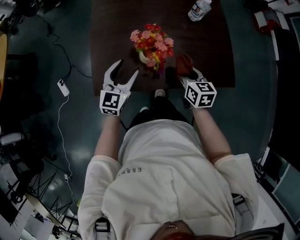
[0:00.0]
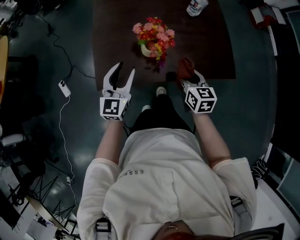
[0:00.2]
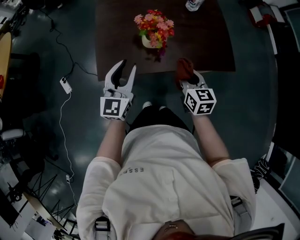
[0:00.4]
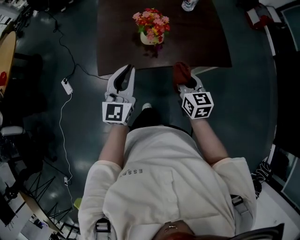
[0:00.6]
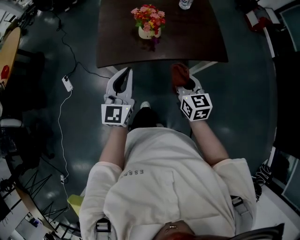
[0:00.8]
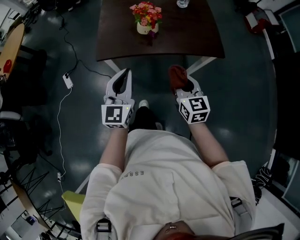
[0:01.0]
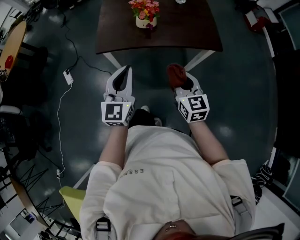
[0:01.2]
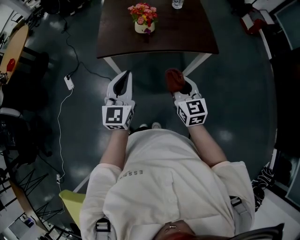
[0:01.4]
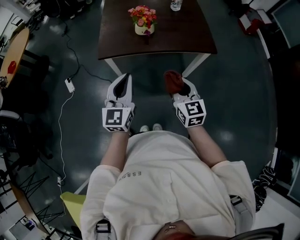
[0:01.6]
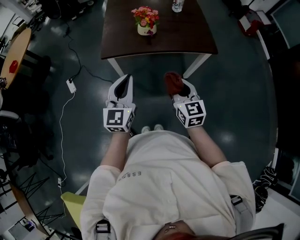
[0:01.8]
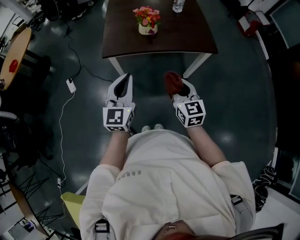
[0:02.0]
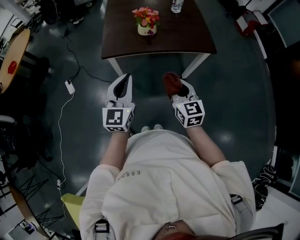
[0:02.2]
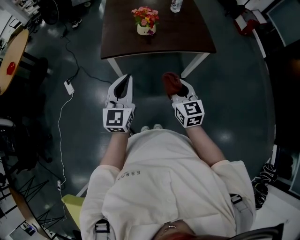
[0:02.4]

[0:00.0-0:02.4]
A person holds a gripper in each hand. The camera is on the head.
0:00.0 to 0:01.2: The left gripper is displaced backward and upward by some 35 cm, and closes, while the right gripper shifts about 30 cm backward, and swivels approximately 20 degrees.
0:01.2 to 0:02.4: The two grippers go roughly 5 cm backward.

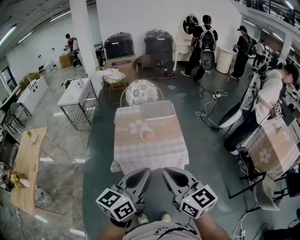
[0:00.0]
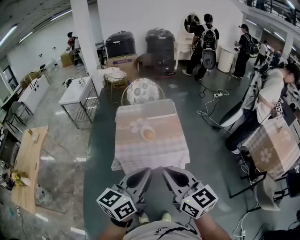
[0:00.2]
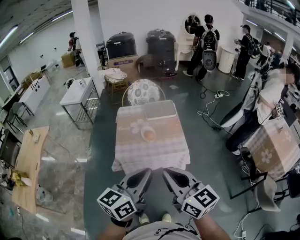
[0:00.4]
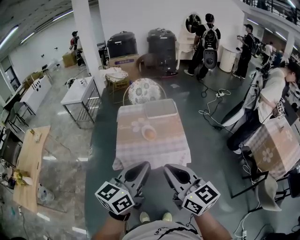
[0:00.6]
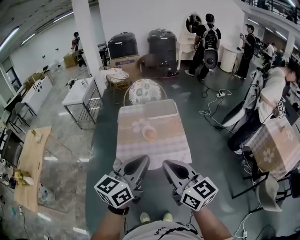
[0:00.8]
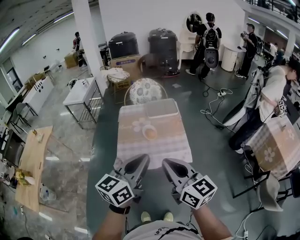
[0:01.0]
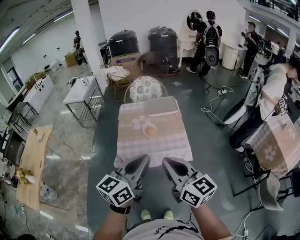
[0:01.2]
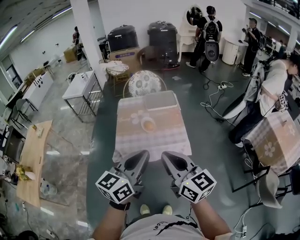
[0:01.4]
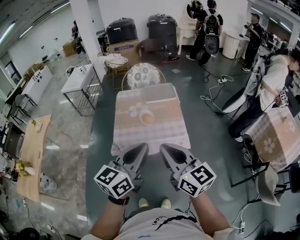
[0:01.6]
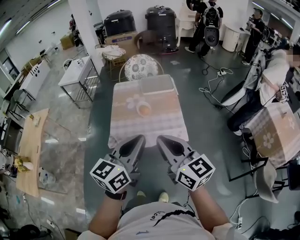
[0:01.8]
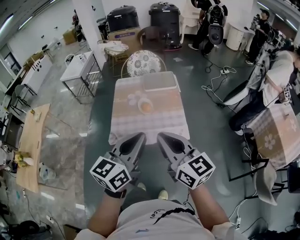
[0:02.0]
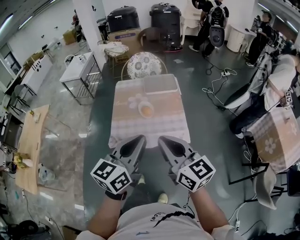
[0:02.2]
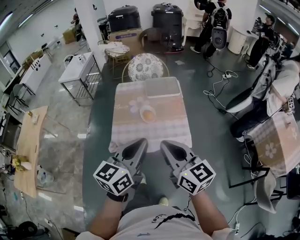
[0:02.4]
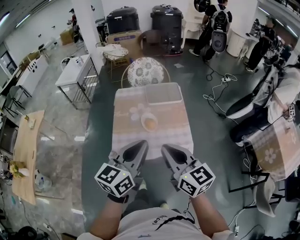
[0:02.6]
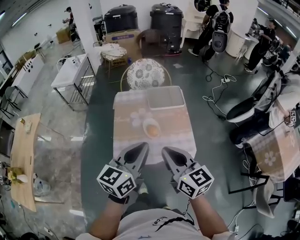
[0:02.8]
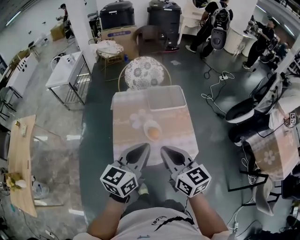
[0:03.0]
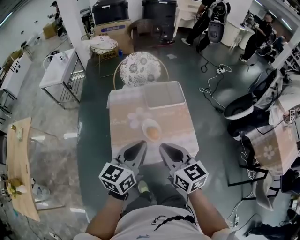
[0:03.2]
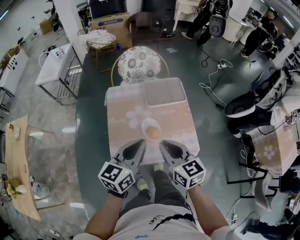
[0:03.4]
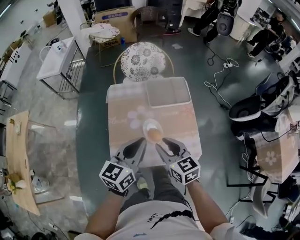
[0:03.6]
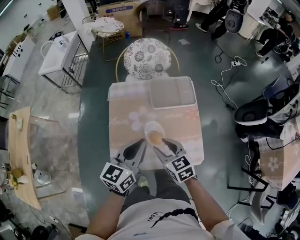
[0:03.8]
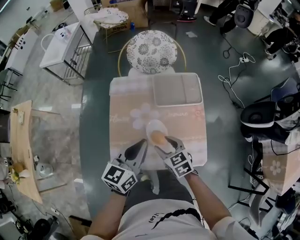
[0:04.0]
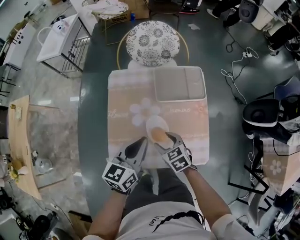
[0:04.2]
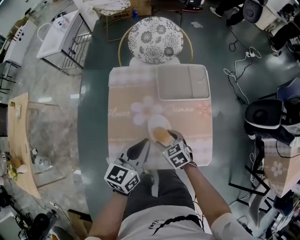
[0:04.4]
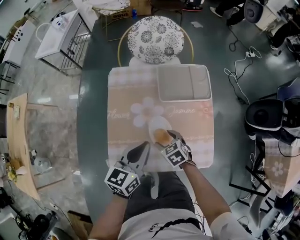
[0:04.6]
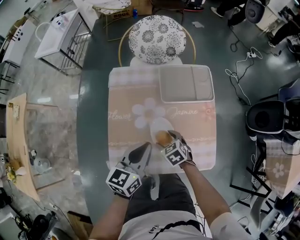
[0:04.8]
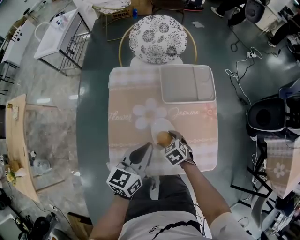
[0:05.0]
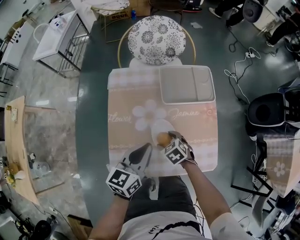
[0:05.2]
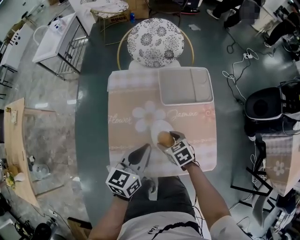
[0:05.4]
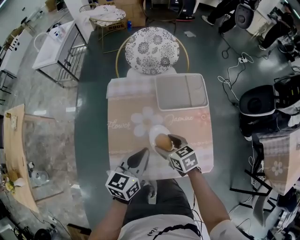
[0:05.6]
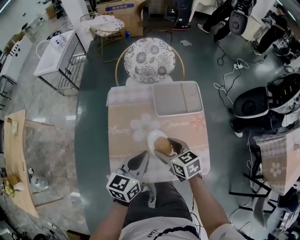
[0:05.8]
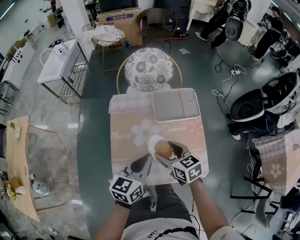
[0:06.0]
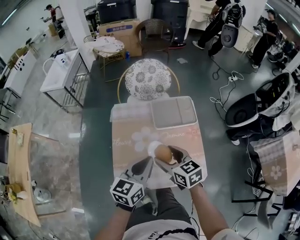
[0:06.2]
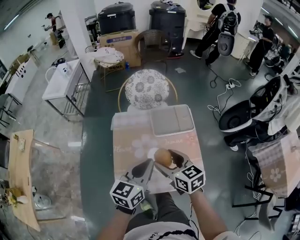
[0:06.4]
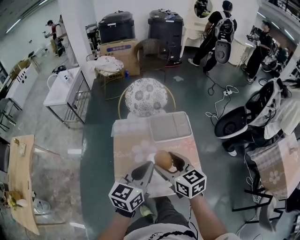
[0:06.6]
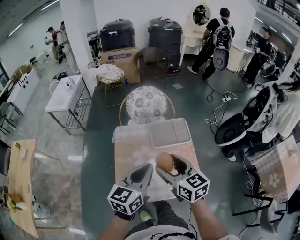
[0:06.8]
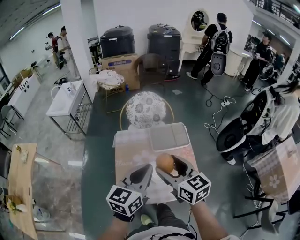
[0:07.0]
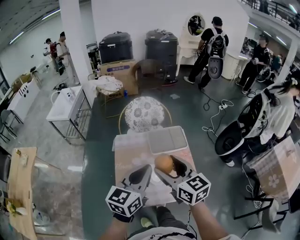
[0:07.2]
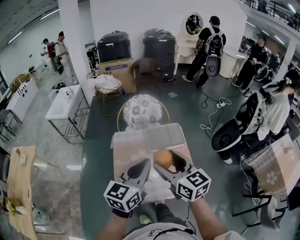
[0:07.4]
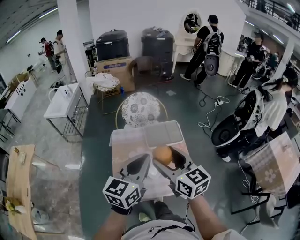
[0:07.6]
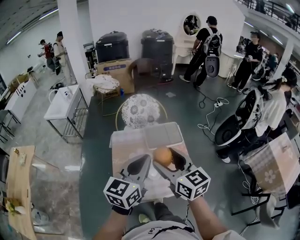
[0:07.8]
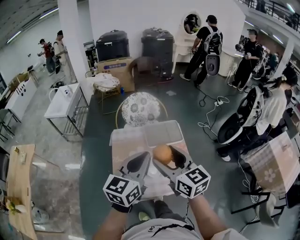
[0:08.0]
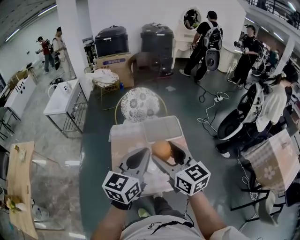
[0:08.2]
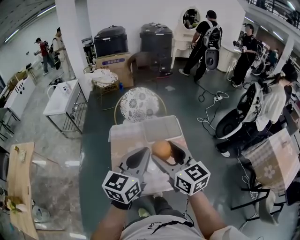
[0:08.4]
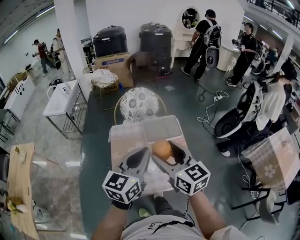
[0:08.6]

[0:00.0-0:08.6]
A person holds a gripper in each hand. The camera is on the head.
0:00.0 to 0:01.4: The grippers move only a little.
0:01.4 to 0:02.8: The two grippers go some 20 cm forward.
0:02.8 to 0:04.4: Both grippers move downward and forward, approximately 35 cm. The right gripper angles its fingers downward, by roughly 50 degrees, and opens.
0:04.4 to 0:05.8: The right gripper heads upward, covering roughly 10 cm, and swivels about 20 degrees.
0:05.8 to 0:07.2: Both grippers move upward, roughly 25 cm. The right gripper rotates about 30 degrees.
0:07.2 to 0:08.6: The grippers move only a little.

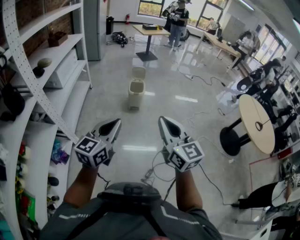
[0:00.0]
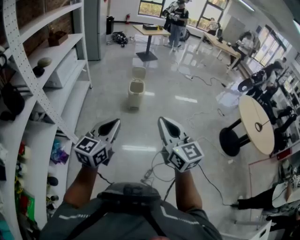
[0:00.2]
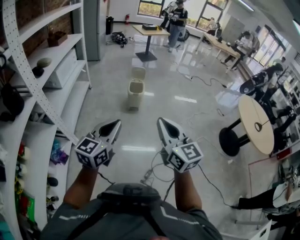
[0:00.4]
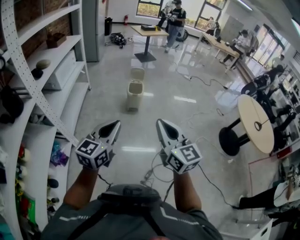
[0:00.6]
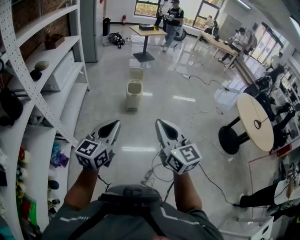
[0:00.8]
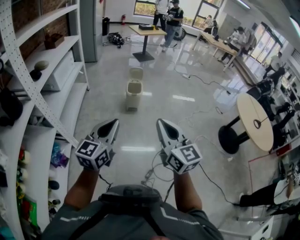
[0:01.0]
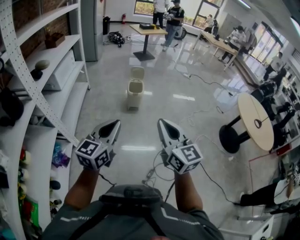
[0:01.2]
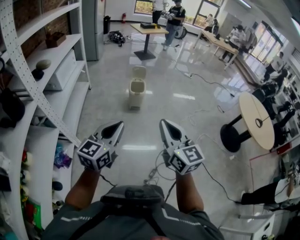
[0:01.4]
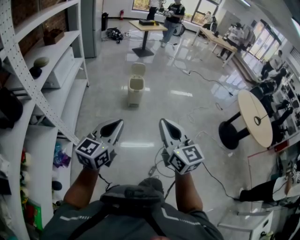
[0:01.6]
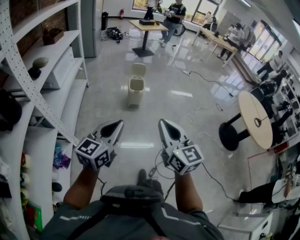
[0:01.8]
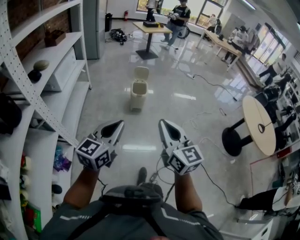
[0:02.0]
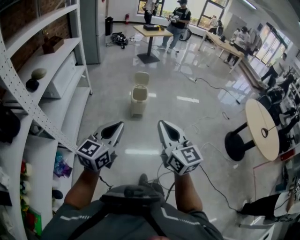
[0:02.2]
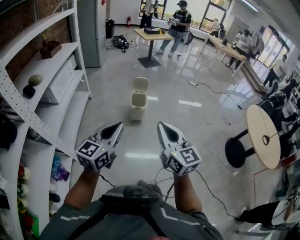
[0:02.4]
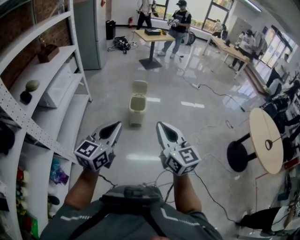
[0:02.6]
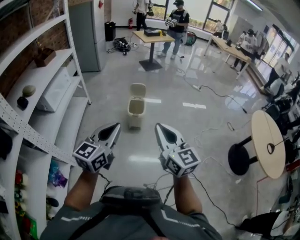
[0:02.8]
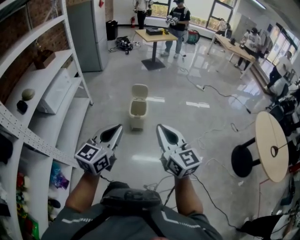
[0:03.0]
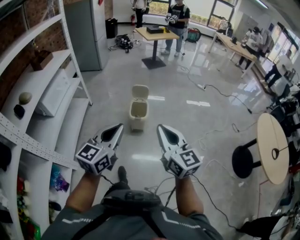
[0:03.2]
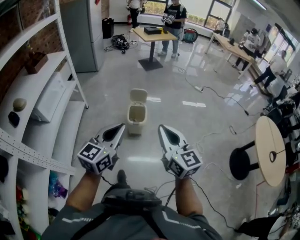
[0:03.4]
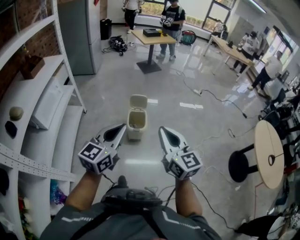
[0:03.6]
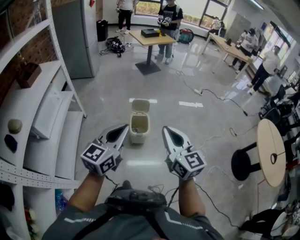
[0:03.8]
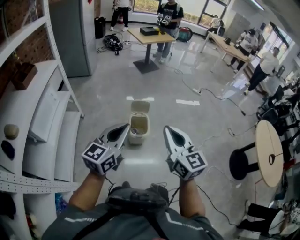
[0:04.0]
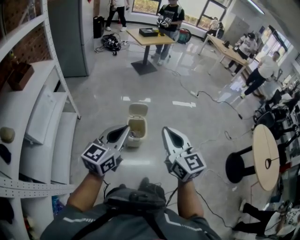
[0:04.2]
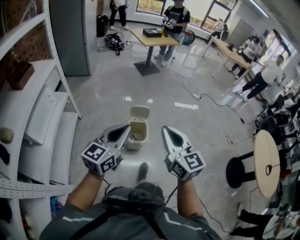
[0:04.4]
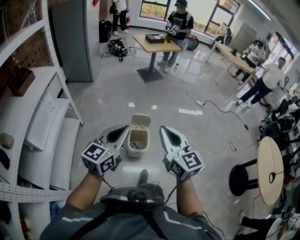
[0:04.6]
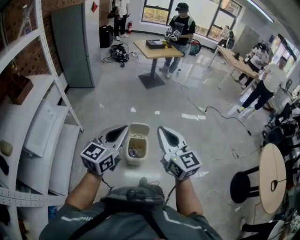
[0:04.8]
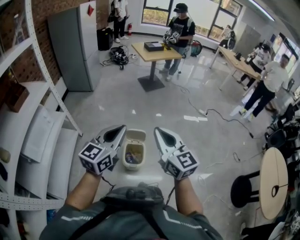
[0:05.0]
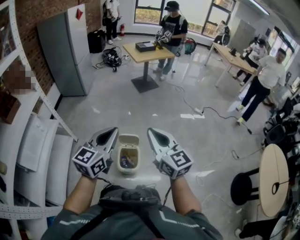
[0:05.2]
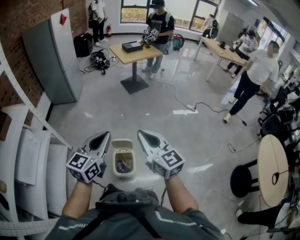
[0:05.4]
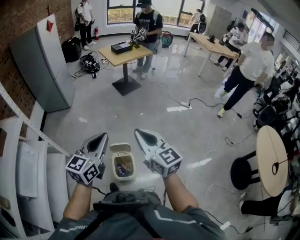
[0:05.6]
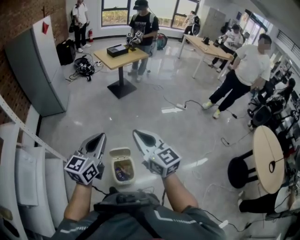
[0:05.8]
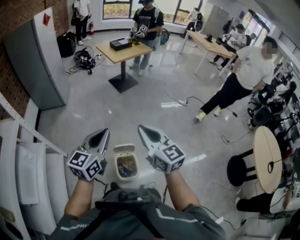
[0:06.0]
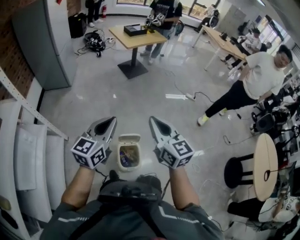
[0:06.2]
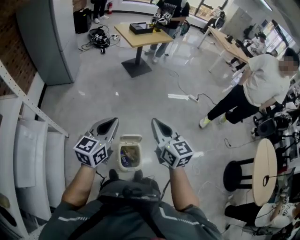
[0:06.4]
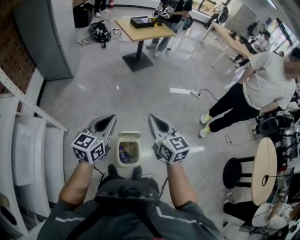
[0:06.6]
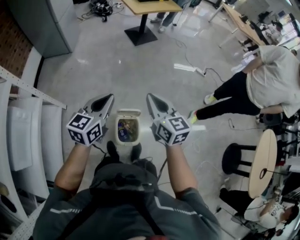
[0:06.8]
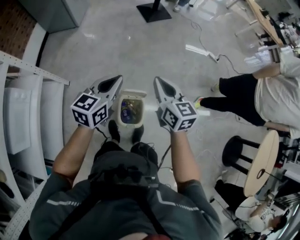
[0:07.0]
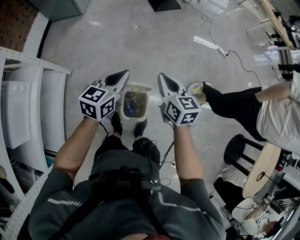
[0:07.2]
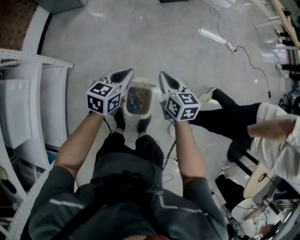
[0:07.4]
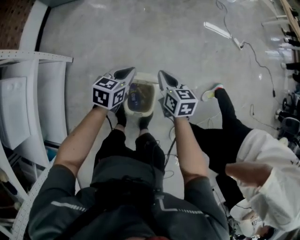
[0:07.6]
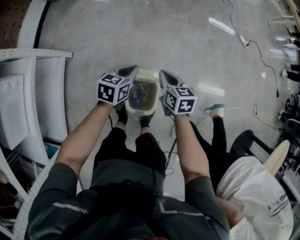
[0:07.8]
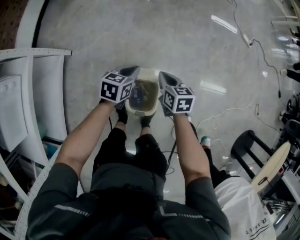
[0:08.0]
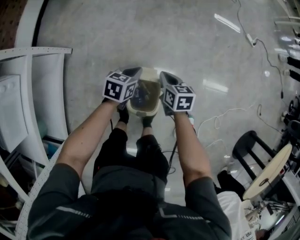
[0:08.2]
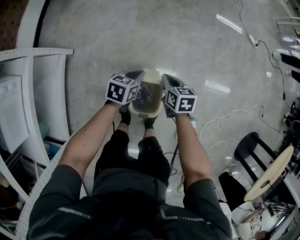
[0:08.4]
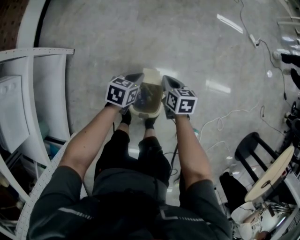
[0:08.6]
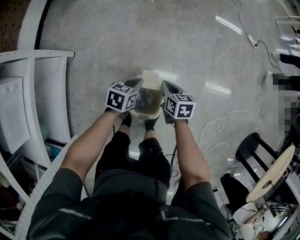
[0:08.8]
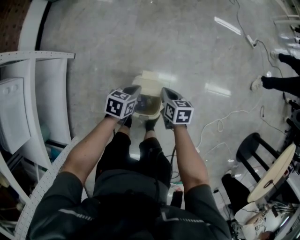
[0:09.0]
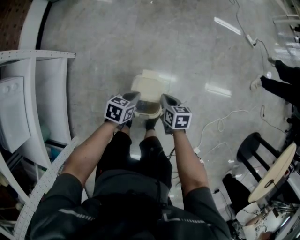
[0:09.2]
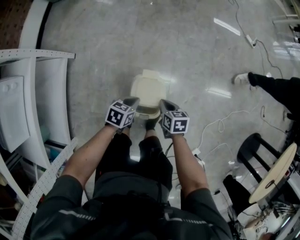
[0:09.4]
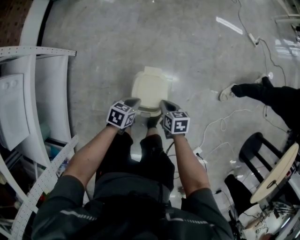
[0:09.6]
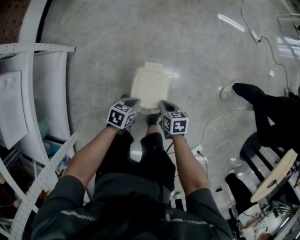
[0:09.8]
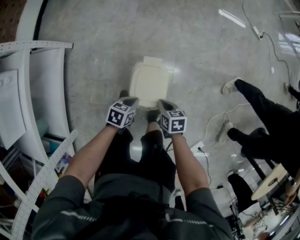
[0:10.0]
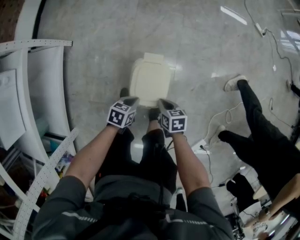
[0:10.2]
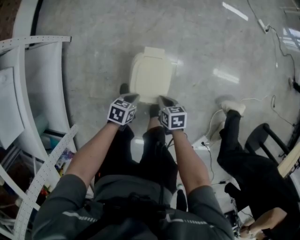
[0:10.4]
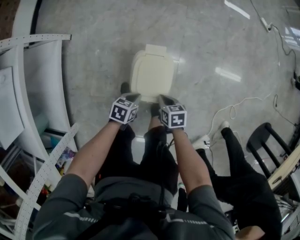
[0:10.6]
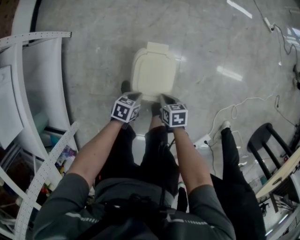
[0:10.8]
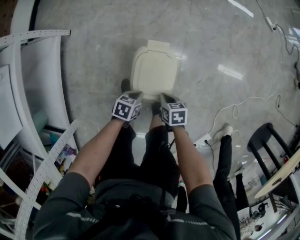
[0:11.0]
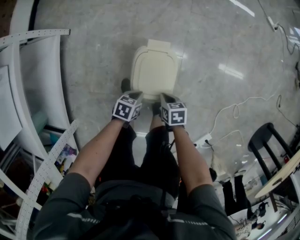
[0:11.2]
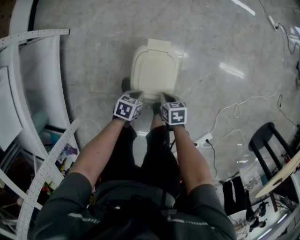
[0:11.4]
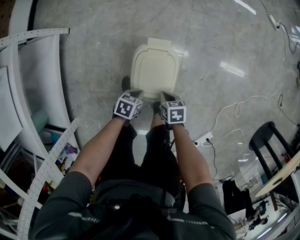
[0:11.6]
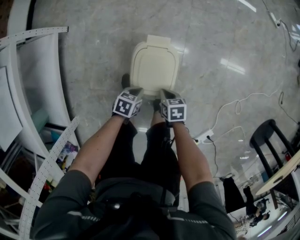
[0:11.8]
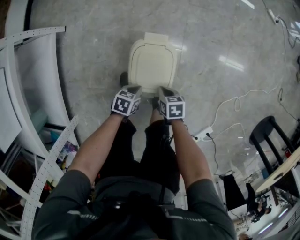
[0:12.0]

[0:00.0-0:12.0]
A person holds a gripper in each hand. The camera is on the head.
0:00.0 to 0:01.6: Both grippers move to the left, some 5 cm.
0:01.6 to 0:03.0: Both grippers move forward, some 30 cm.
0:03.0 to 0:04.4: The grippers both shift forward by approximately 30 cm.
0:04.4 to 0:06.0: Both grippers travel together forward, some 30 cm.
0:06.0 to 0:07.6: Both grippers travel together downward, roughly 35 cm. The left gripper tilts its fingers roughly 30 degrees downward. Meanwhile the right gripper points its fingers about 30 degrees further downward.
0:07.6 to 0:09.0: Both grippers move downward and backward, some 15 cm.
0:09.0 to 0:10.4: Both grippers travel together backward and downward, about 20 cm.
0:10.4 to 0:12.0: The grippers both shift downward by roughly 5 cm.

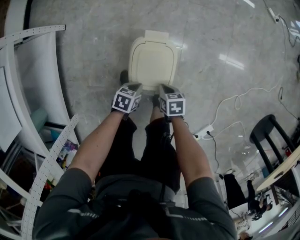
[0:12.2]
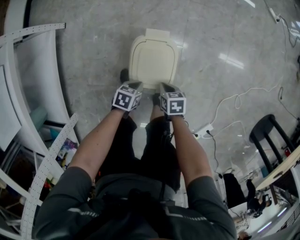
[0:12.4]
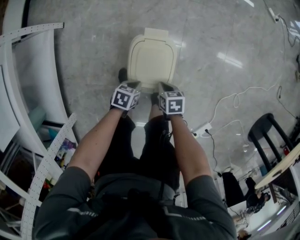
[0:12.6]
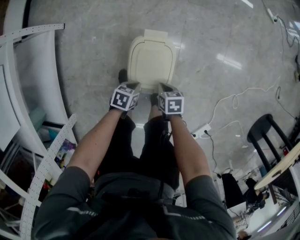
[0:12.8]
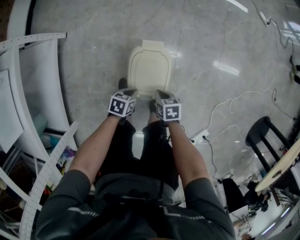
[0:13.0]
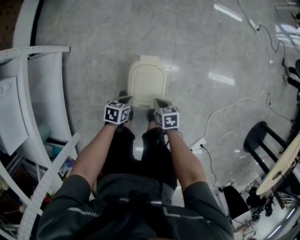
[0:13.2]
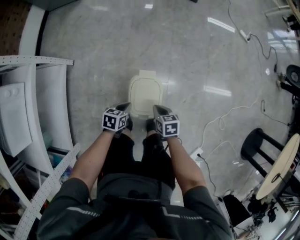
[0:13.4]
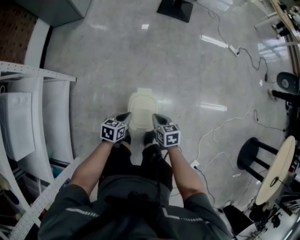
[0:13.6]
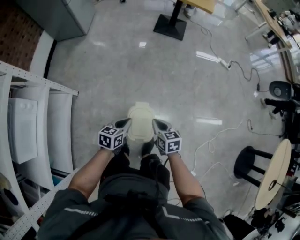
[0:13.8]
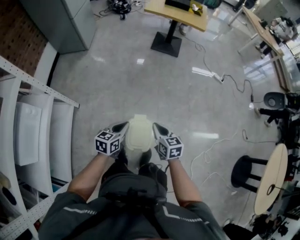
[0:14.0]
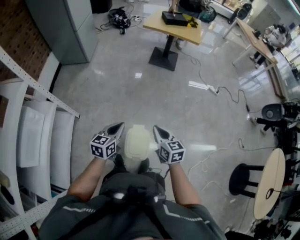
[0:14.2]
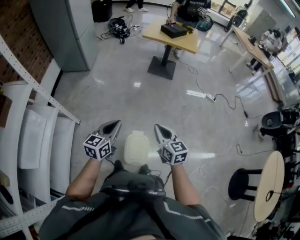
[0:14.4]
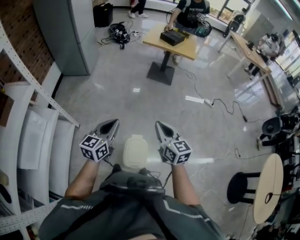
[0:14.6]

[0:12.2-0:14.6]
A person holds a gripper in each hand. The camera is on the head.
0:12.2 to 0:13.4: Both grippers travel together upward, about 15 cm.
0:13.4 to 0:14.6: The grippers both shift upward by roughly 40 cm. The left gripper angles its fingers upward, by roughly 40 degrees, while the right gripper angles its fingers upward, by some 40 degrees.
